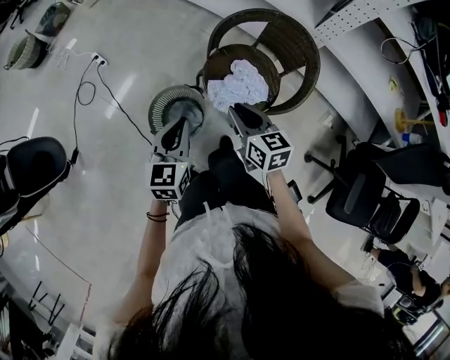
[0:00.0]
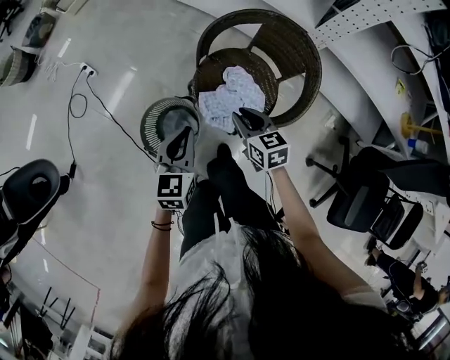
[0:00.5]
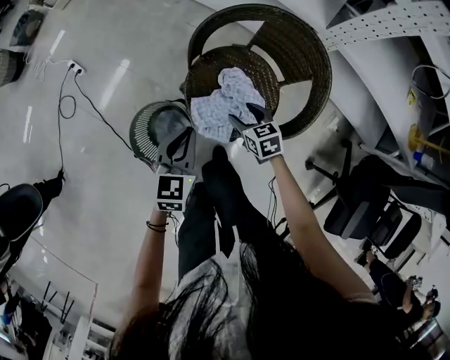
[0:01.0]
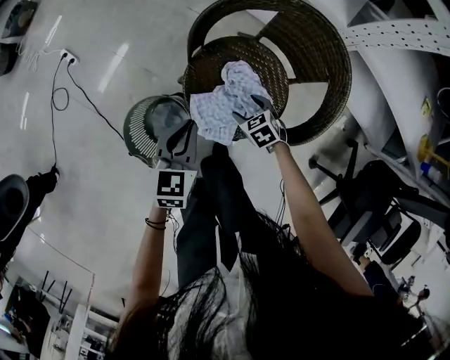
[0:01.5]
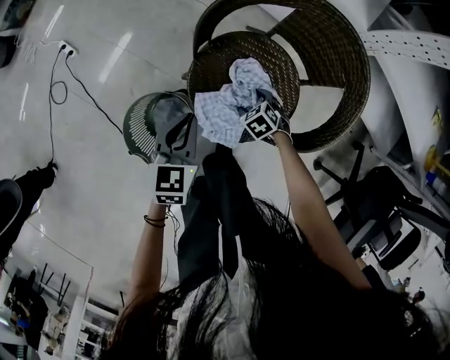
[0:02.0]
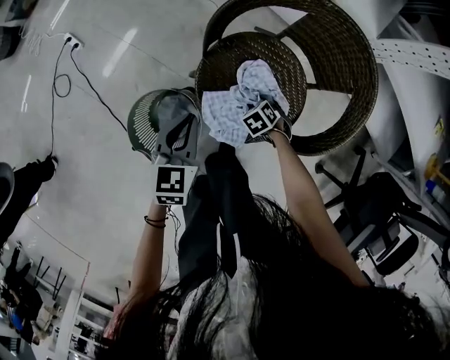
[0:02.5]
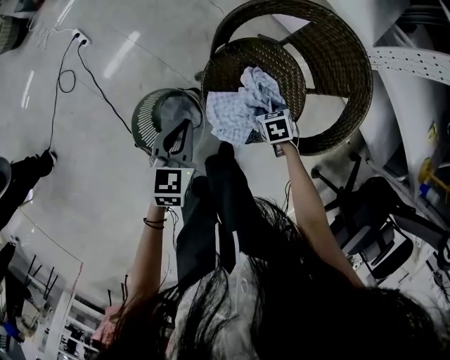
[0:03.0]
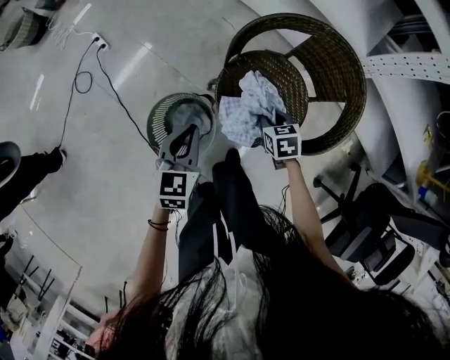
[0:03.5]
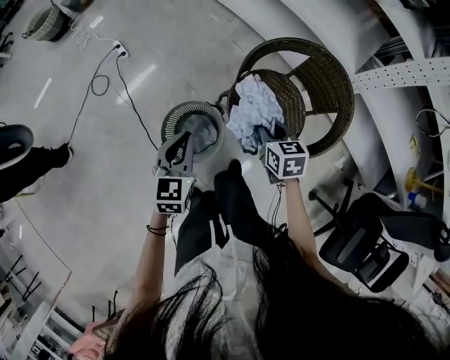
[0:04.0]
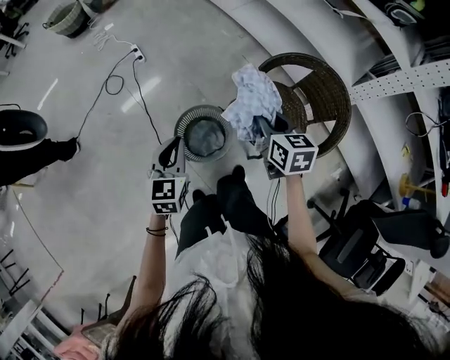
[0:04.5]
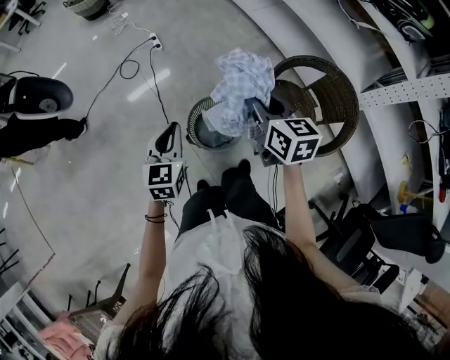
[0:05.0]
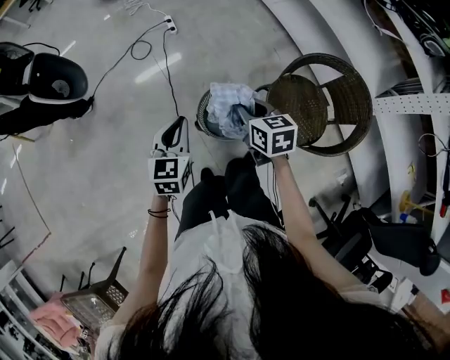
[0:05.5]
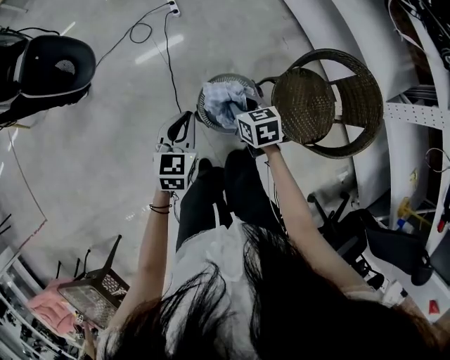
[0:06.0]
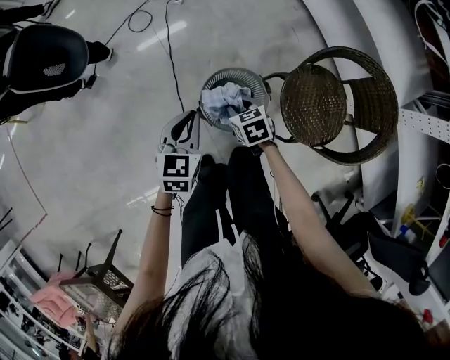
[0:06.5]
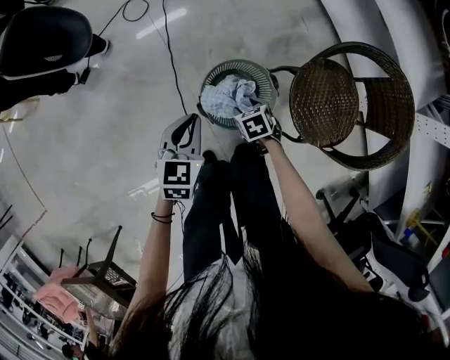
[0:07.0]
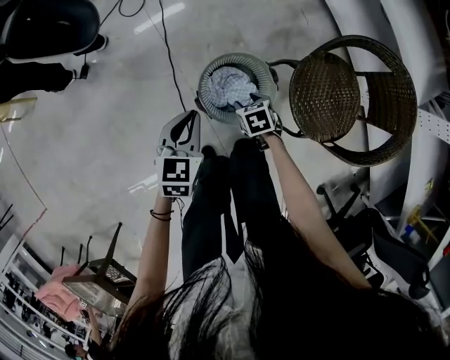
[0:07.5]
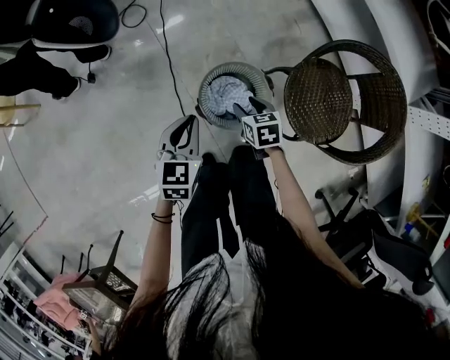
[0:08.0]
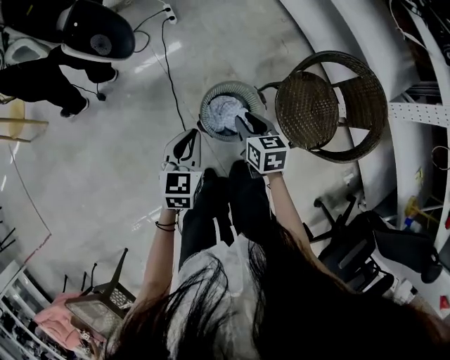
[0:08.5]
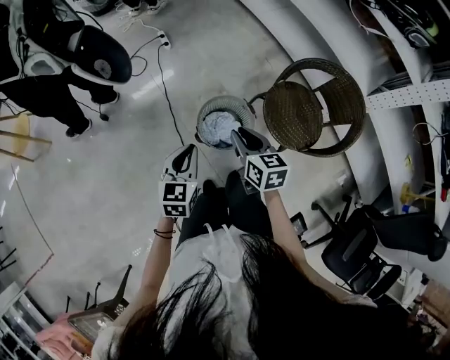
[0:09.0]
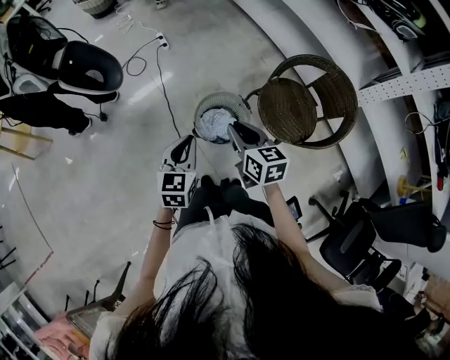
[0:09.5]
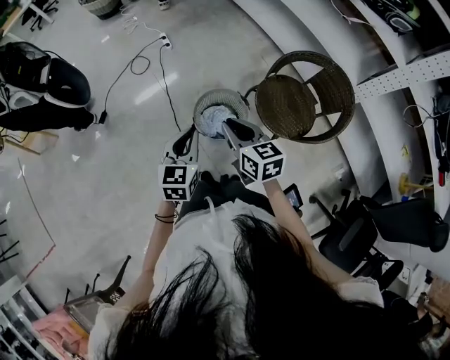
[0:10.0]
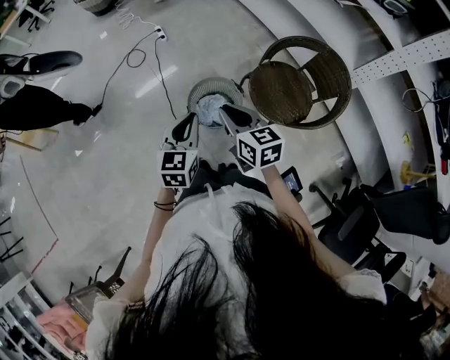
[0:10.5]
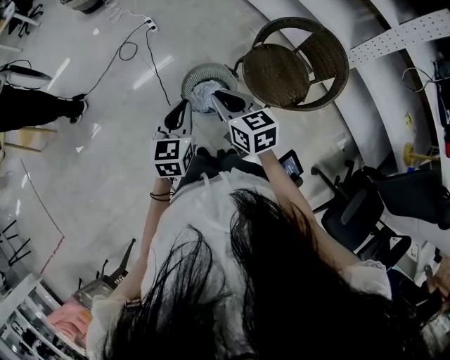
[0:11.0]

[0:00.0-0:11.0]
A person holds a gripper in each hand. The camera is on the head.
0:00.0 to 0:02.0: The right gripper heads downward, covering roughly 40 cm, points its fingers about 50 degrees further downward, and opens up, while the left gripper goes some 30 cm downward, forward and to the right.
0:02.0 to 0:03.5: The left gripper moves roughly 10 cm. Meanwhile the right gripper moves upward, some 15 cm, changes its angle by approximately 20 degrees, and closes up.
0:03.5 to 0:05.5: The right gripper moves to the left and upward, some 40 cm, and swivels about 30 degrees, while the left gripper is displaced to the left, upward and backward by roughly 35 cm, and swivels approximately 30 degrees.
0:05.5 to 0:07.5: The left gripper goes roughly 15 cm downward, while the right gripper heads downward, covering approximately 35 cm, angles its fingers downward, by approximately 30 degrees, and opens.
0:07.5 to 0:09.0: The right gripper goes approximately 35 cm upward, tilts its fingers roughly 40 degrees upward, and closes, while the left gripper travels upward and backward by approximately 20 cm.
0:09.0 to 0:11.0: The right gripper shifts about 10 cm upward and backward. The left gripper moves to the right, upward and backward, about 15 cm.

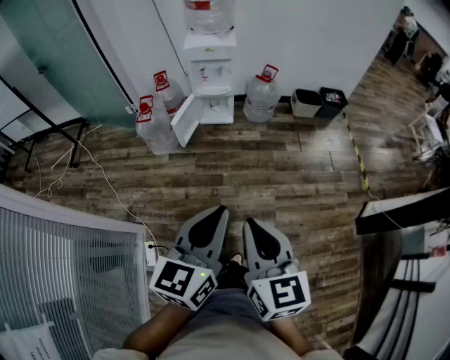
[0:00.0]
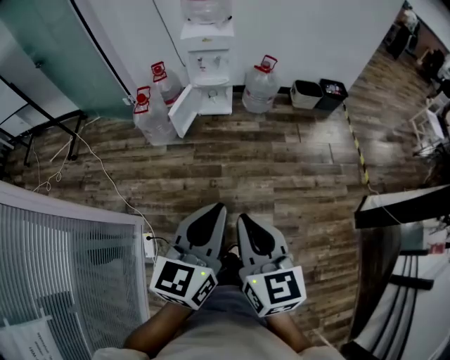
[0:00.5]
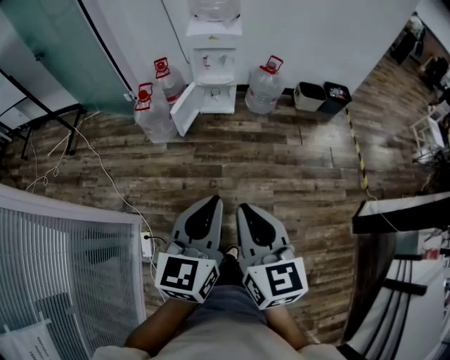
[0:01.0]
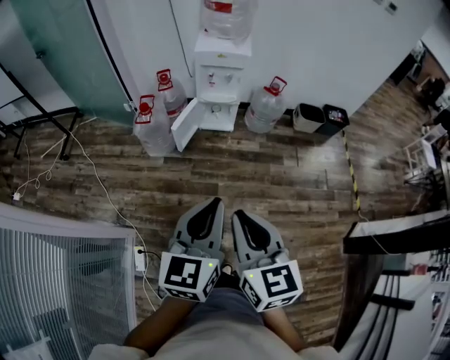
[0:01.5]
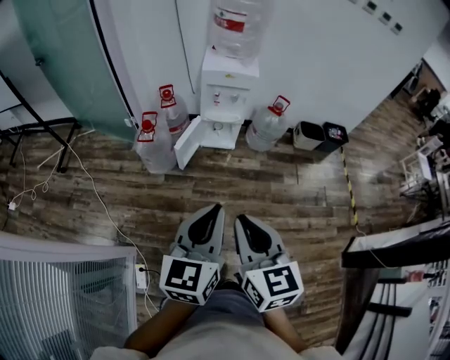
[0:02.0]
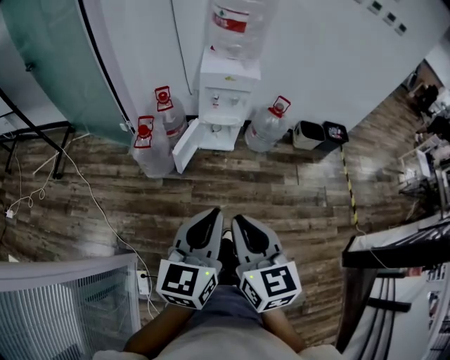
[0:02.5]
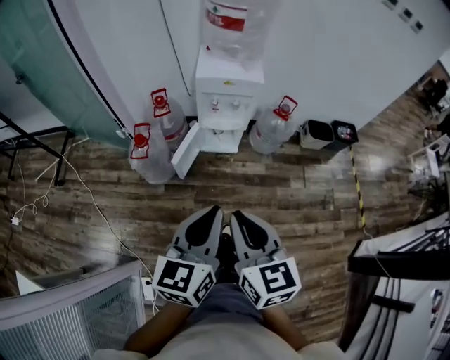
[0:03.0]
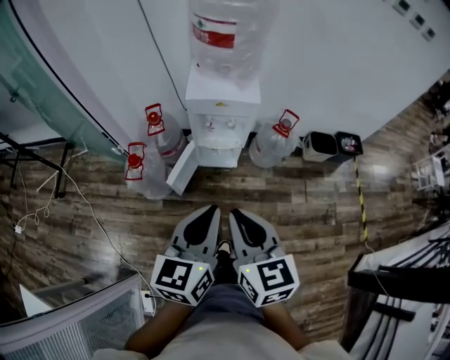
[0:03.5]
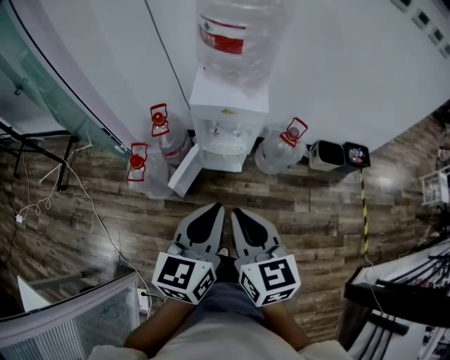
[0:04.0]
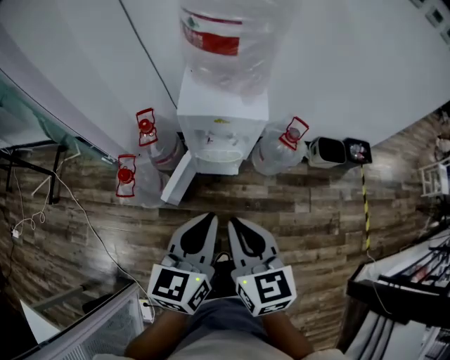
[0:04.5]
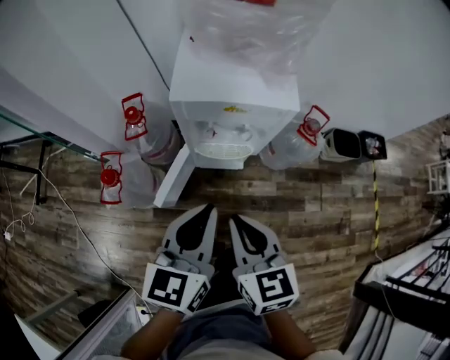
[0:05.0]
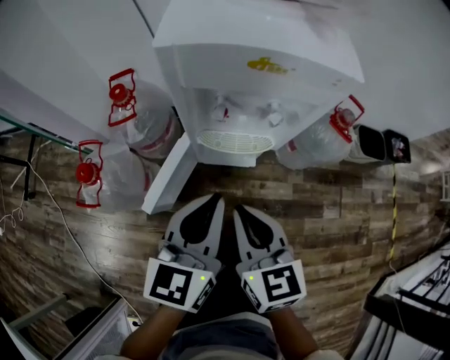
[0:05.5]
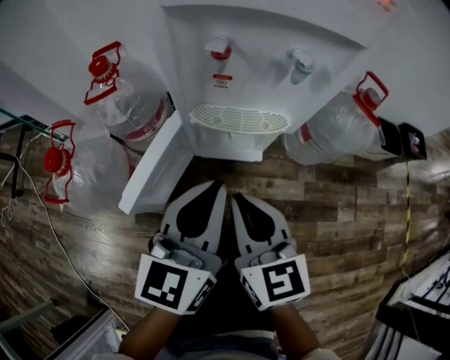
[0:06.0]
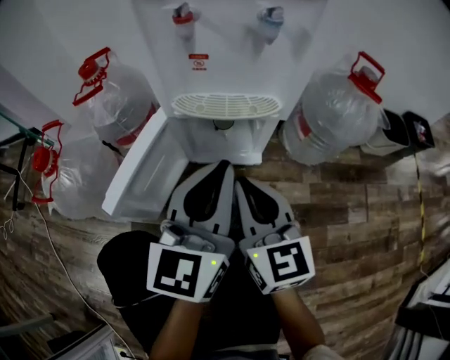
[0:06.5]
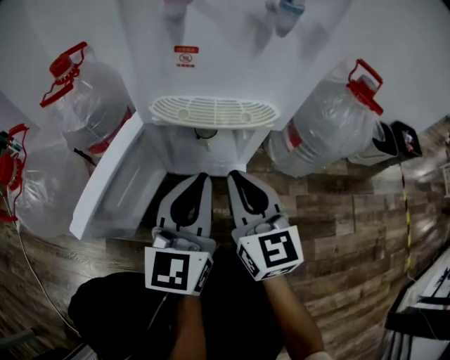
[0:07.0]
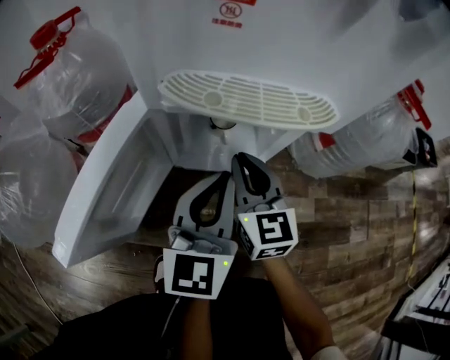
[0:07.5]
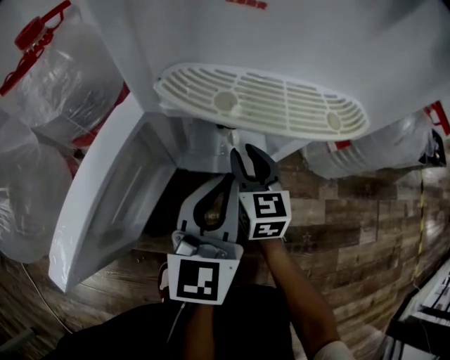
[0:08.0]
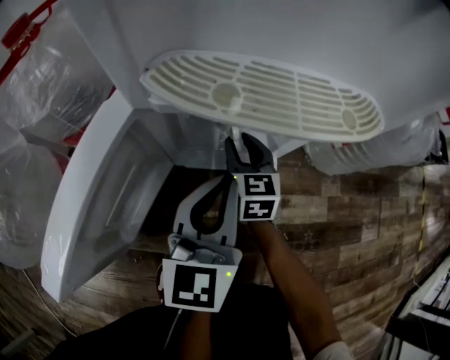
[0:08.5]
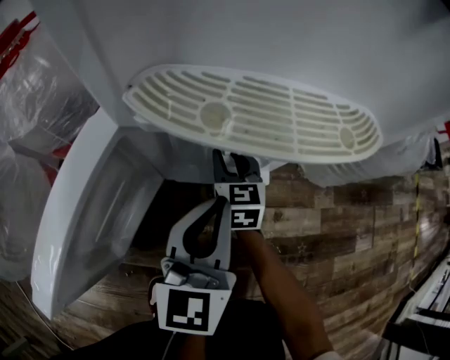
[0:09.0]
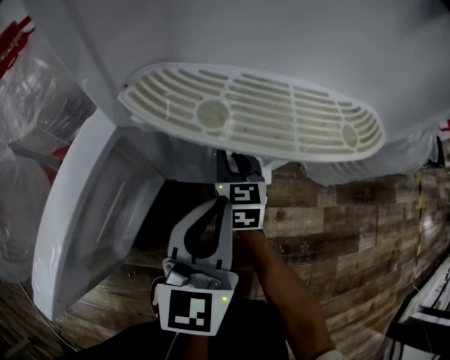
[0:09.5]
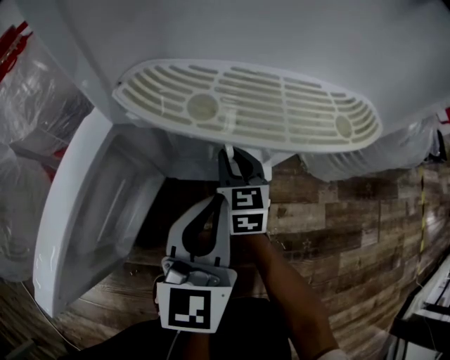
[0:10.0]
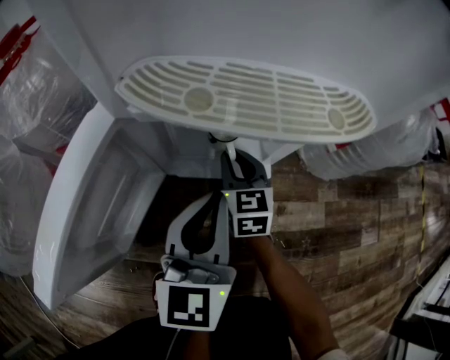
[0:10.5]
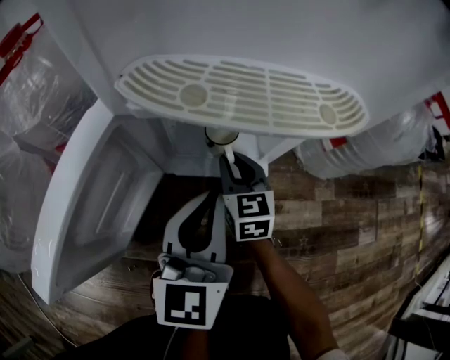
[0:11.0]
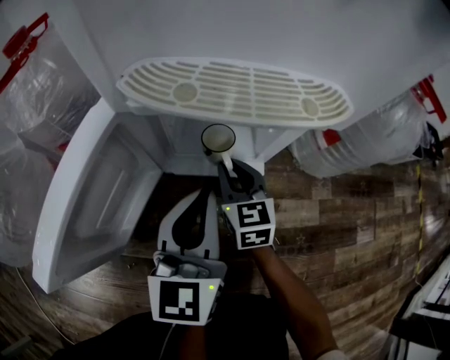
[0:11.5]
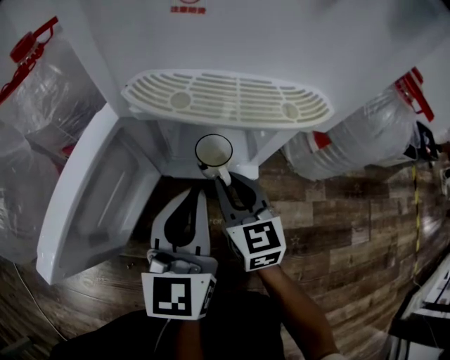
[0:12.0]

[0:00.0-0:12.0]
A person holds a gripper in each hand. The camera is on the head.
0:00.0 to 0:02.0: Both grippers travel together forward and to the left, approximately 20 cm.
0:02.0 to 0:04.0: Both grippers travel together forward, some 35 cm.
0:04.0 to 0:06.0: The grippers both shift downward and forward by roughly 50 cm.
0:06.0 to 0:08.0: The left gripper is displaced downward by roughly 25 cm. The right gripper shifts approximately 40 cm downward and forward, and opens its fingers.
0:08.0 to 0:10.0: The right gripper shifts approximately 5 cm downward.
0:10.0 to 0:12.0: The right gripper shifts roughly 10 cm backward and upward.

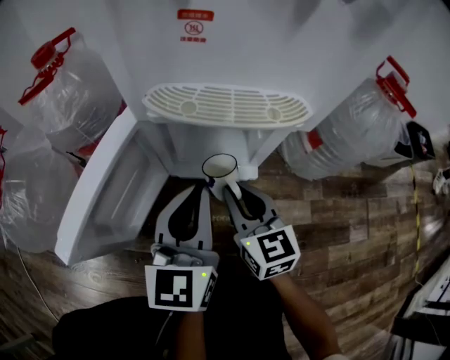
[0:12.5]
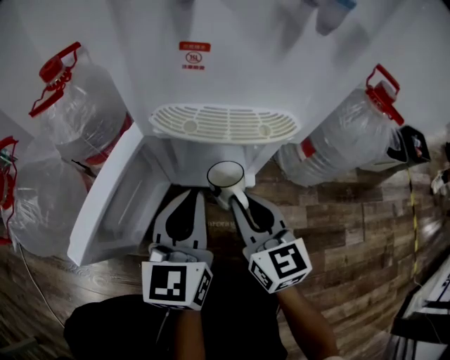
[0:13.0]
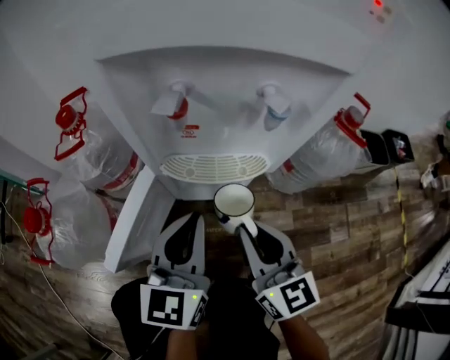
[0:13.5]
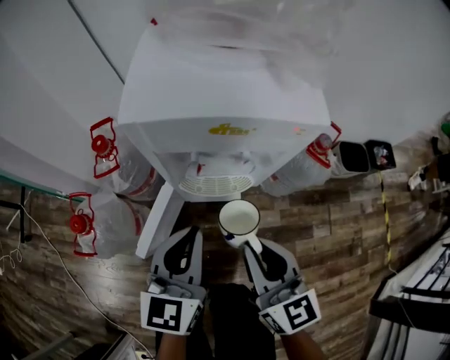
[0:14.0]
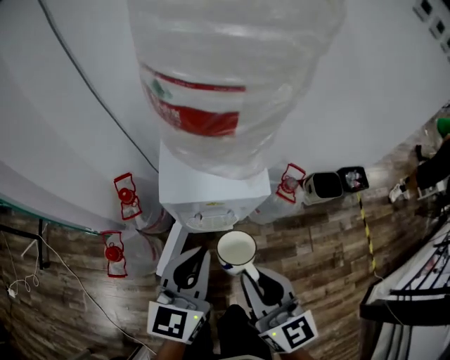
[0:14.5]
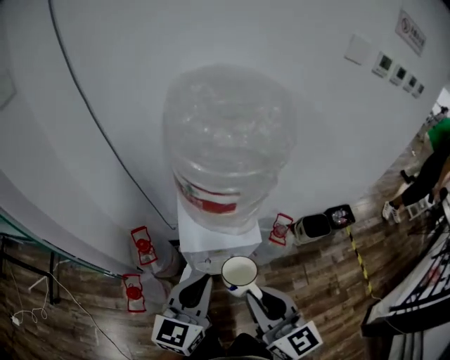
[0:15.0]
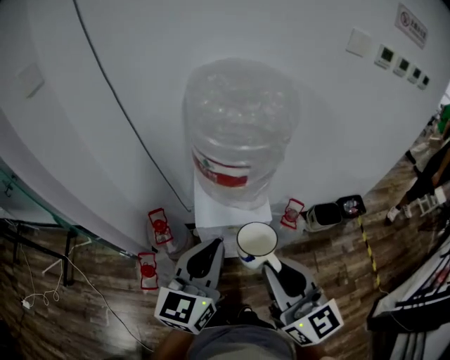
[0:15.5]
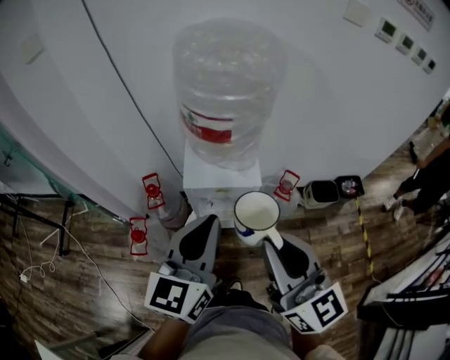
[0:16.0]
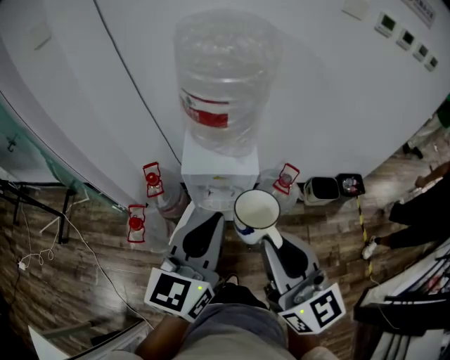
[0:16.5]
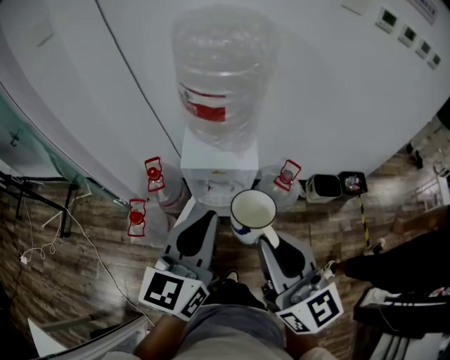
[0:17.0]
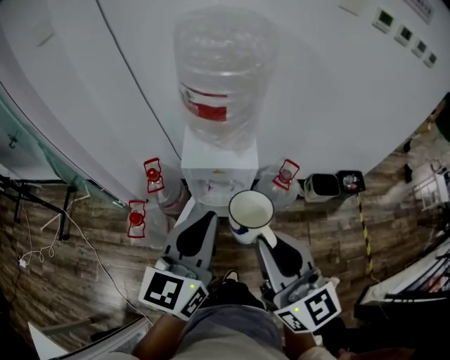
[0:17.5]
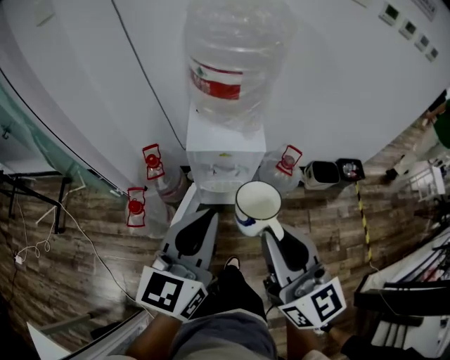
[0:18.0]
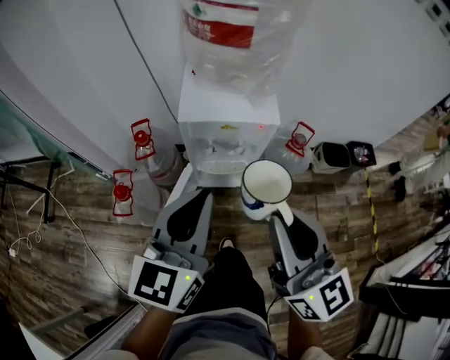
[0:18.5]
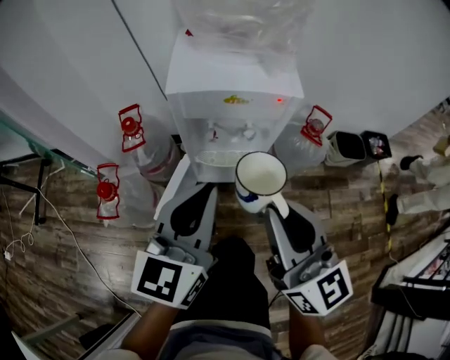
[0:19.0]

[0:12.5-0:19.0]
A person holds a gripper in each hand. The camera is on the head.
0:12.5 to 0:14.5: The two grippers go about 60 cm upward.
0:14.5 to 0:17.0: The grippers both shift upward and backward by about 25 cm.
0:17.0 to 0:19.0: The two grippers go about 30 cm downward.
